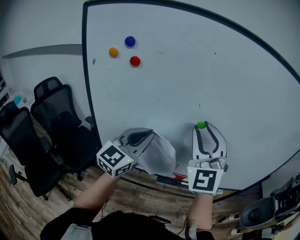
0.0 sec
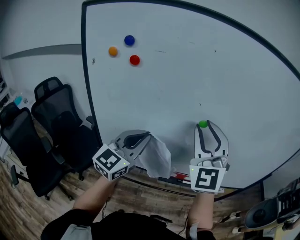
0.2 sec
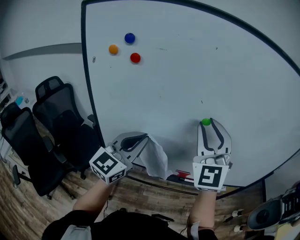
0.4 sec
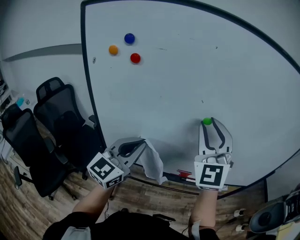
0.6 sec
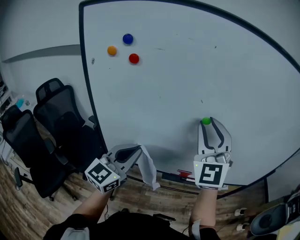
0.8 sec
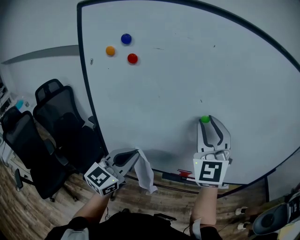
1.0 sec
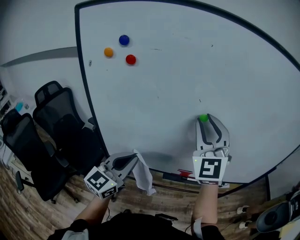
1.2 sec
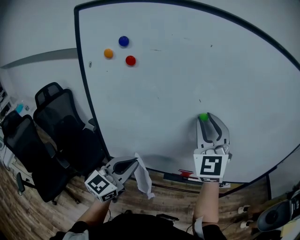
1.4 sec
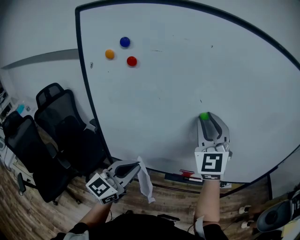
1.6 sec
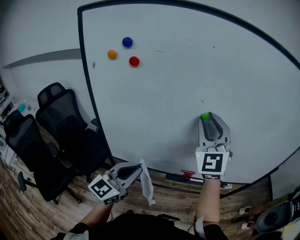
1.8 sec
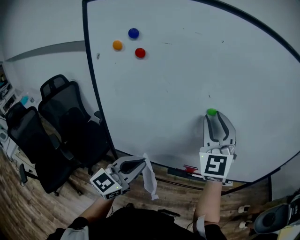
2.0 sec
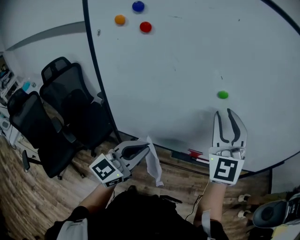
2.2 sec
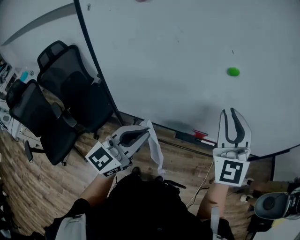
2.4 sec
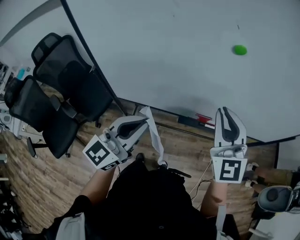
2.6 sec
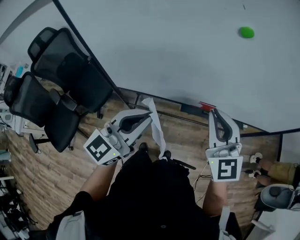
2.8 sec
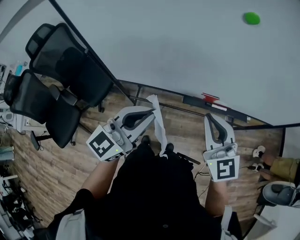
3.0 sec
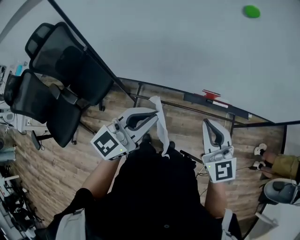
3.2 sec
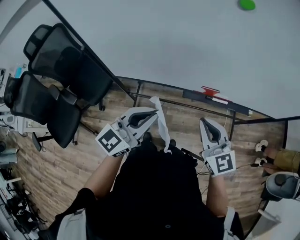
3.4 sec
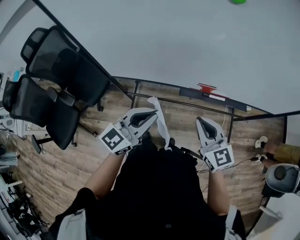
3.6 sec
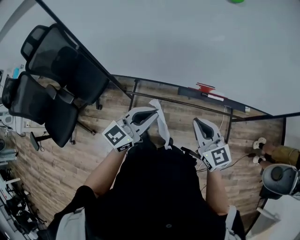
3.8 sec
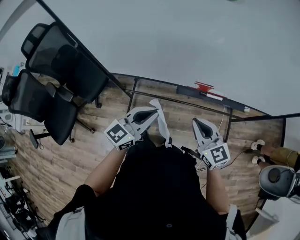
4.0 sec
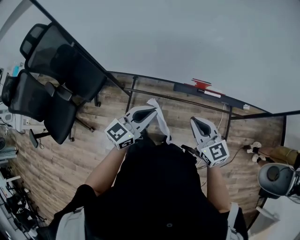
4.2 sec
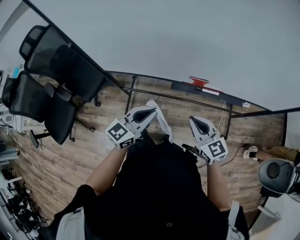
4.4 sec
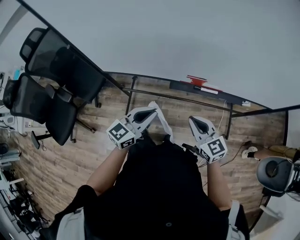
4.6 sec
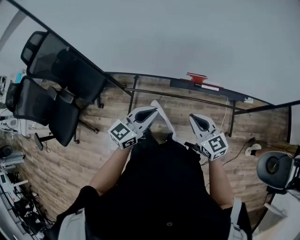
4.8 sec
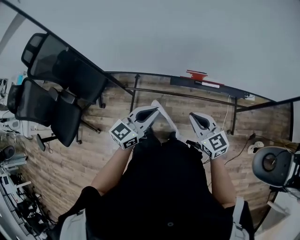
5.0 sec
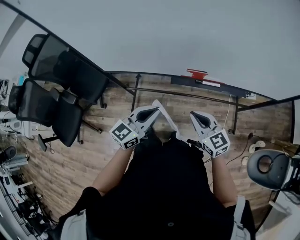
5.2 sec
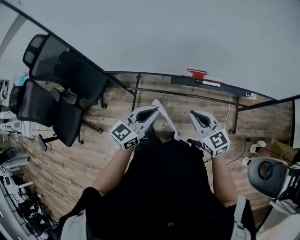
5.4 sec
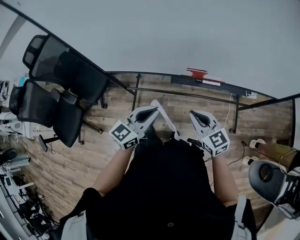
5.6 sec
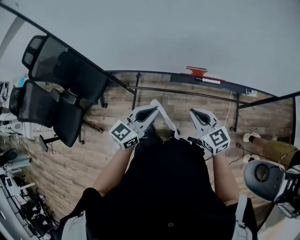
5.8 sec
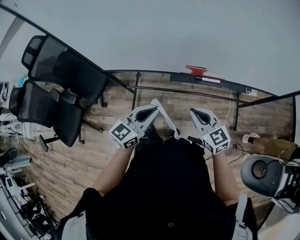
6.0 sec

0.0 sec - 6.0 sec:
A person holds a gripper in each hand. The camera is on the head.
0.0 sec - 1.6 sec: The right gripper shifts by about 5 cm; the left gripper goes about 15 cm backward and downward.
1.6 sec - 3.0 sec: The right gripper shifts roughly 30 cm downward and backward, turns by roughly 40 degrees, and closes. The left gripper heads downward, covering about 5 cm.
3.0 sec - 4.4 sec: The right gripper travels downward by some 20 cm, and changes its angle by approximately 20 degrees, while the left gripper heads downward and to the right, covering about 20 cm.
4.4 sec - 6.0 sec: The grippers stay close to where they were, moving slightly.

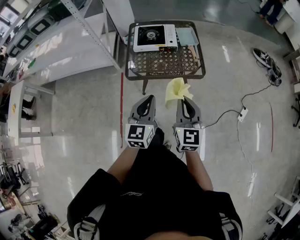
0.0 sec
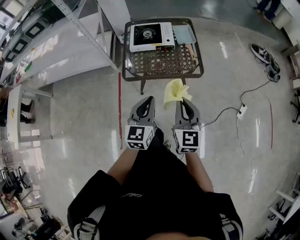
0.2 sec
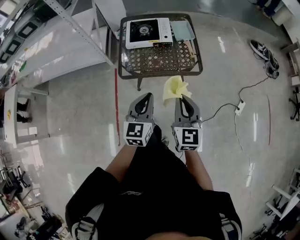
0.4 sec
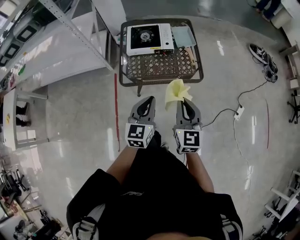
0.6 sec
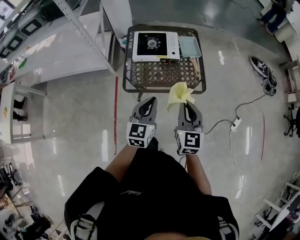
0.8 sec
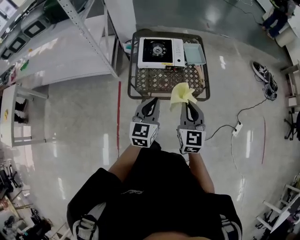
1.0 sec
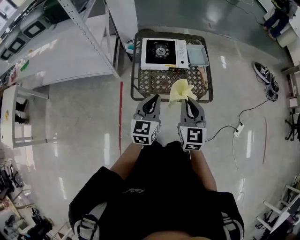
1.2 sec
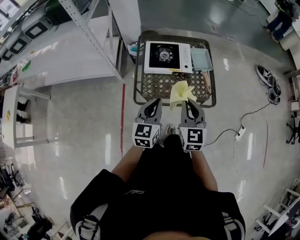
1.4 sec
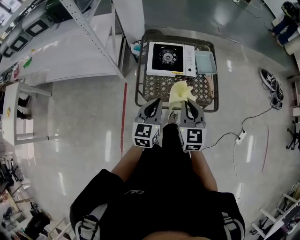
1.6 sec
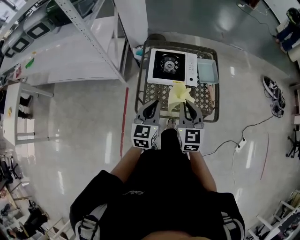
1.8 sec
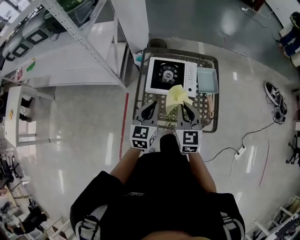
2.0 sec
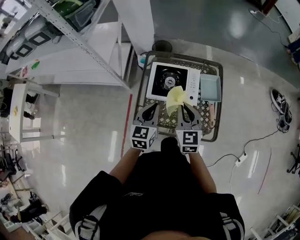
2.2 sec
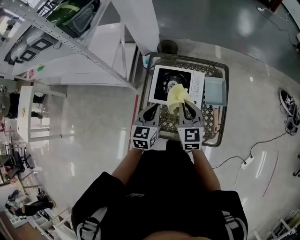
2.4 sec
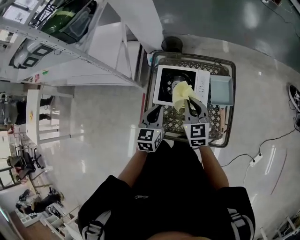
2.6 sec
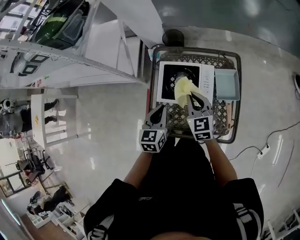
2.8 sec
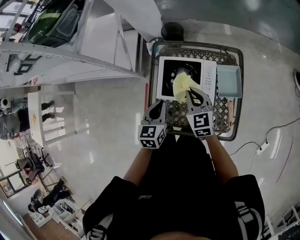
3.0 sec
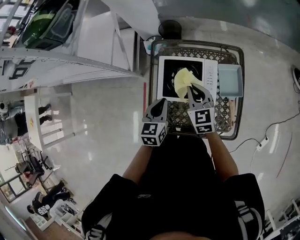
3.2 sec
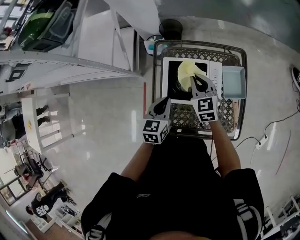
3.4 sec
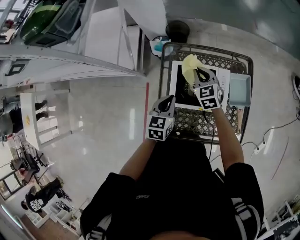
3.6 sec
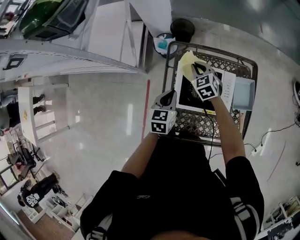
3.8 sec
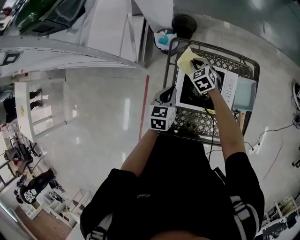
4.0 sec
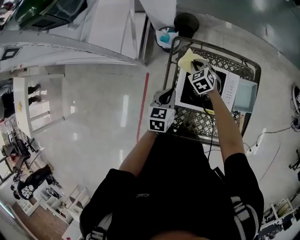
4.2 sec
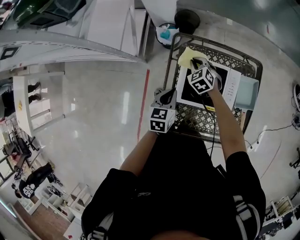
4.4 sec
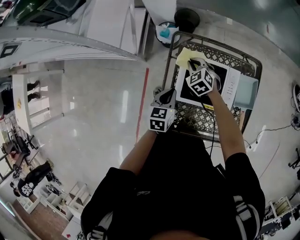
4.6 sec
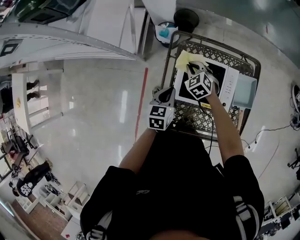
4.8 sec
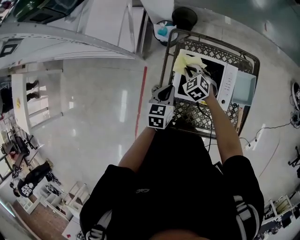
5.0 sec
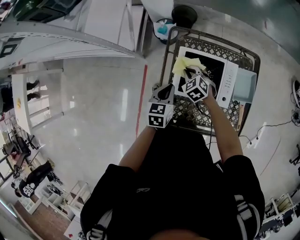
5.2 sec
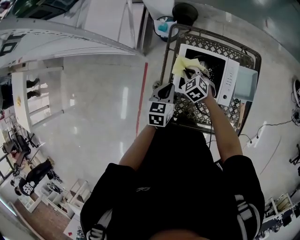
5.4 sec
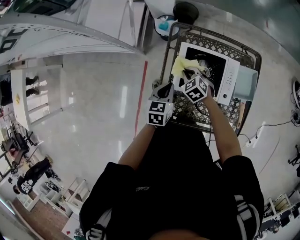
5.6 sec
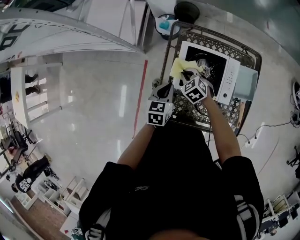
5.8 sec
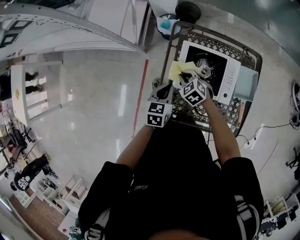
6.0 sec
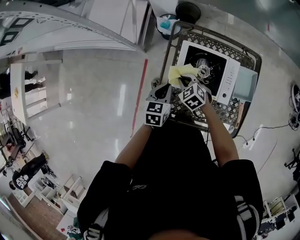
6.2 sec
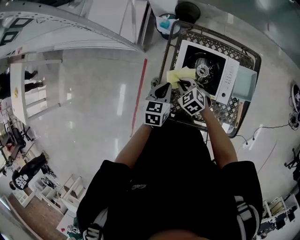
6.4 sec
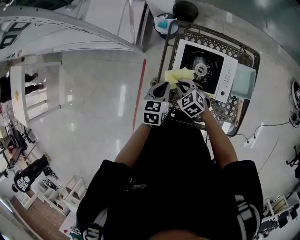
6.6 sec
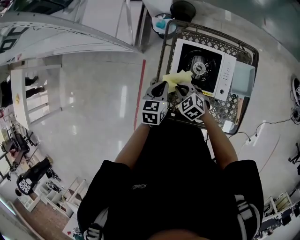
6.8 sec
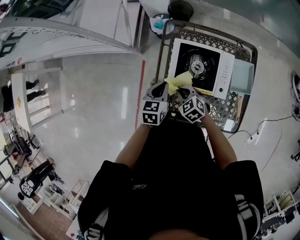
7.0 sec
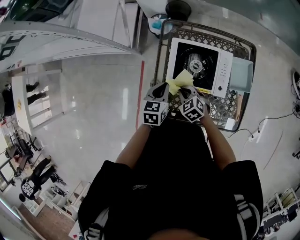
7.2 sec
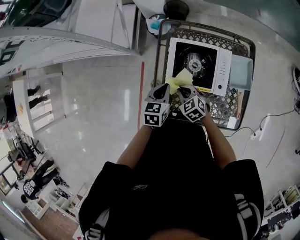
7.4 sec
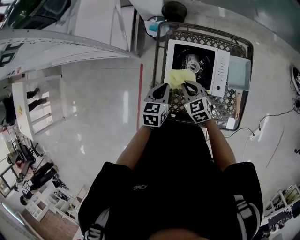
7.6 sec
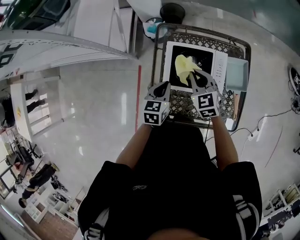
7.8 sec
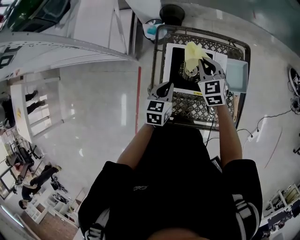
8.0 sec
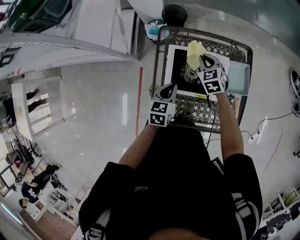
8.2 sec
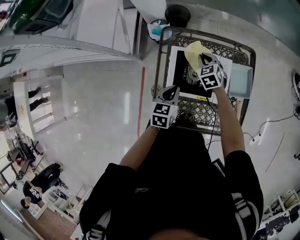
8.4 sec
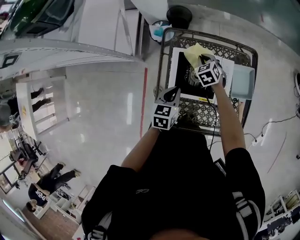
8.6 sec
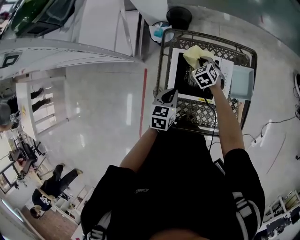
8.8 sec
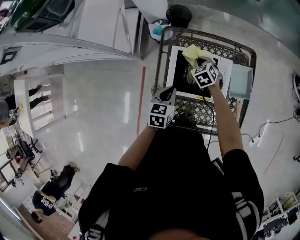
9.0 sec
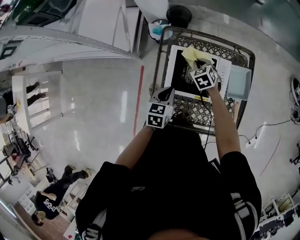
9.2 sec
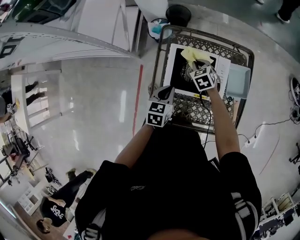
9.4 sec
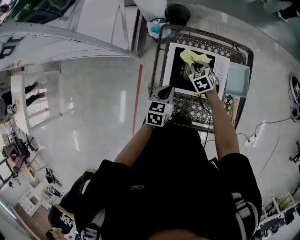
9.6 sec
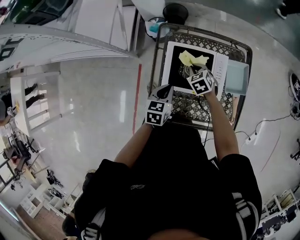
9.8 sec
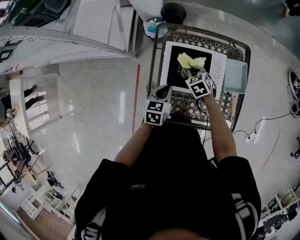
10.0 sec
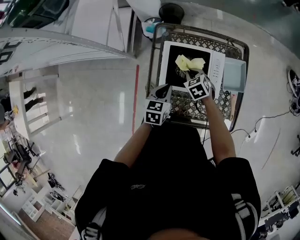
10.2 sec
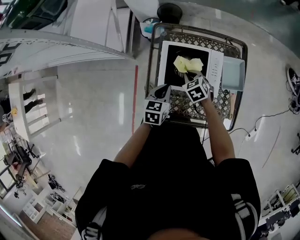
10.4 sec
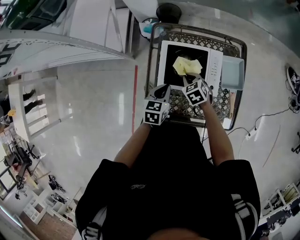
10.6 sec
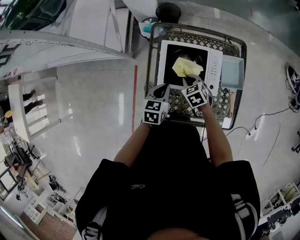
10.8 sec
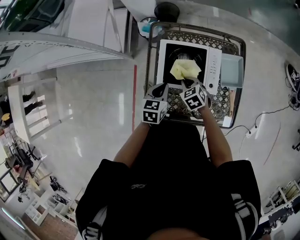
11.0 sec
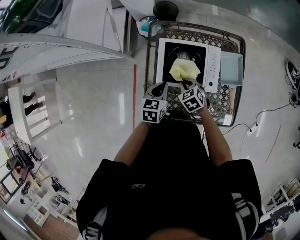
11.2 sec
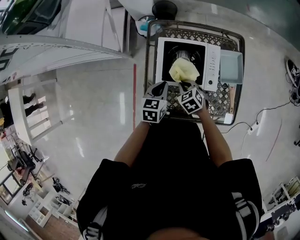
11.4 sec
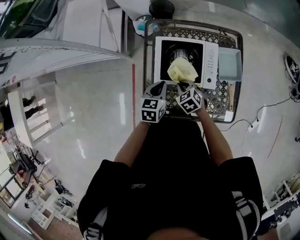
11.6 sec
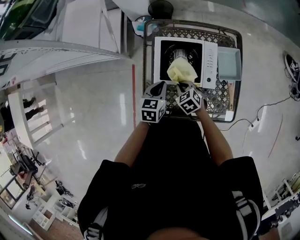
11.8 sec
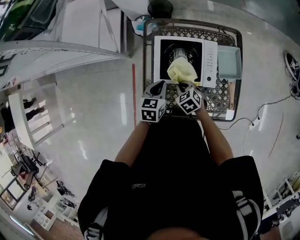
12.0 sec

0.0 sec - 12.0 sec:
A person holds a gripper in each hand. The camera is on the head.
0.0 sec - 1.6 sec: Both grippers travel together forward and to the left, approximately 30 cm.
1.6 sec - 3.0 sec: Both grippers travel together forward, approximately 30 cm. The right gripper changes its angle by about 20 degrees.
3.0 sec - 4.4 sec: The left gripper moves downward, to the left and forward, some 15 cm; the right gripper goes roughly 30 cm forward, downward and to the left, and swivels some 40 degrees.
4.4 sec - 6.0 sec: The left gripper goes about 5 cm backward, while the right gripper is displaced backward by roughly 15 cm.
6.0 sec - 7.6 sec: The right gripper heads upward, to the right and backward, covering approximately 10 cm, and changes its angle by approximately 20 degrees.
7.6 sec - 9.0 sec: The right gripper travels forward by some 15 cm.
9.0 sec - 10.4 sec: The right gripper shifts some 10 cm backward.
10.4 sec - 12.0 sec: The right gripper moves backward, about 10 cm.

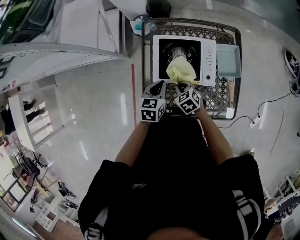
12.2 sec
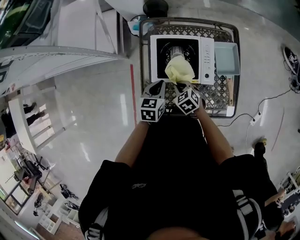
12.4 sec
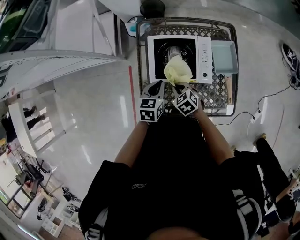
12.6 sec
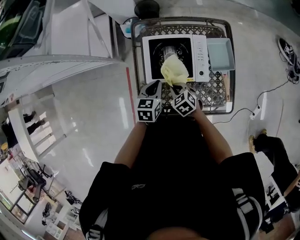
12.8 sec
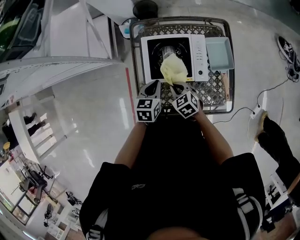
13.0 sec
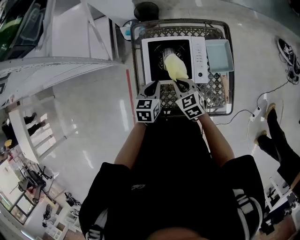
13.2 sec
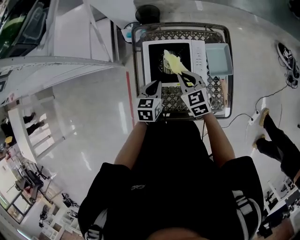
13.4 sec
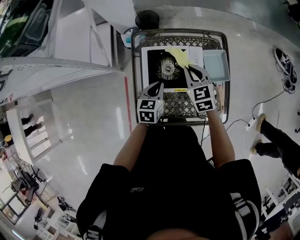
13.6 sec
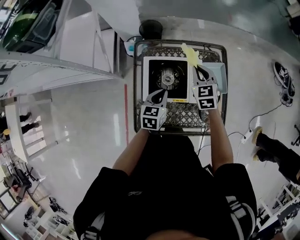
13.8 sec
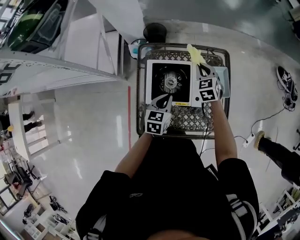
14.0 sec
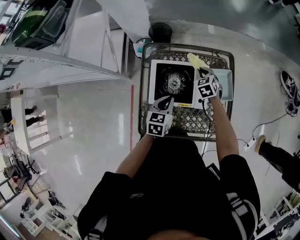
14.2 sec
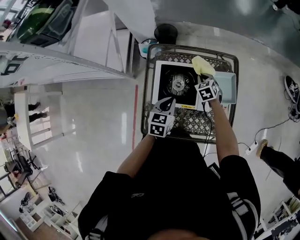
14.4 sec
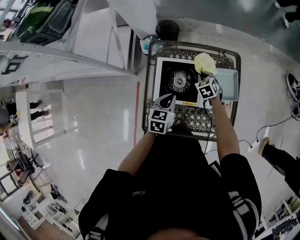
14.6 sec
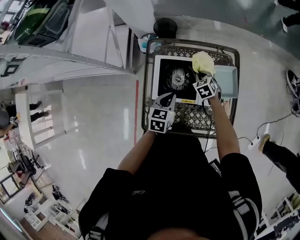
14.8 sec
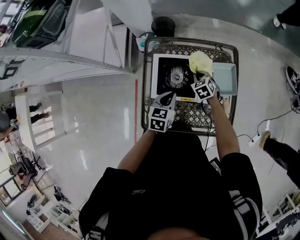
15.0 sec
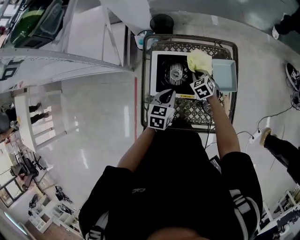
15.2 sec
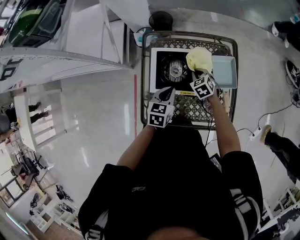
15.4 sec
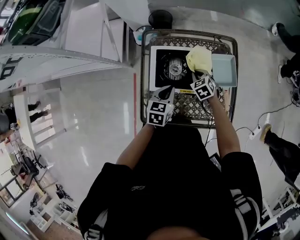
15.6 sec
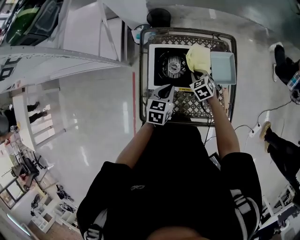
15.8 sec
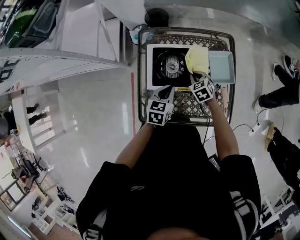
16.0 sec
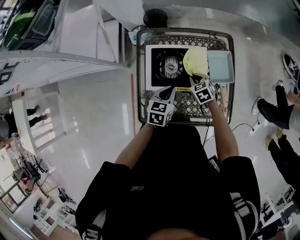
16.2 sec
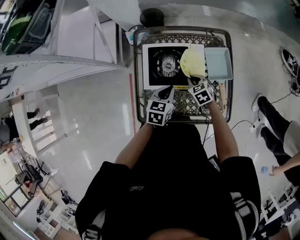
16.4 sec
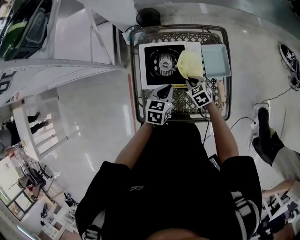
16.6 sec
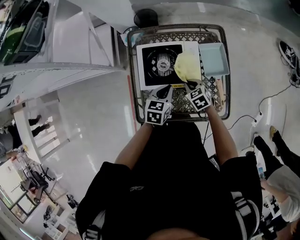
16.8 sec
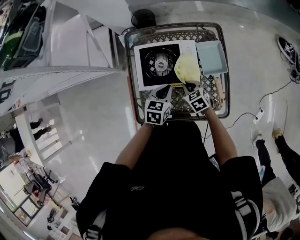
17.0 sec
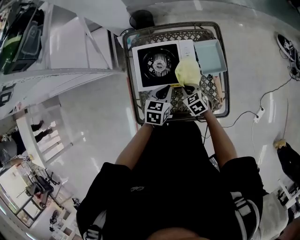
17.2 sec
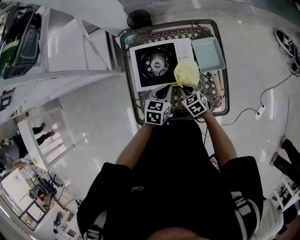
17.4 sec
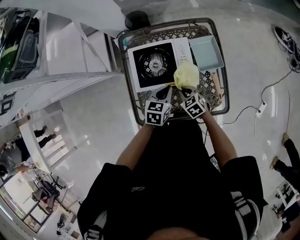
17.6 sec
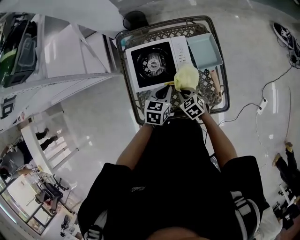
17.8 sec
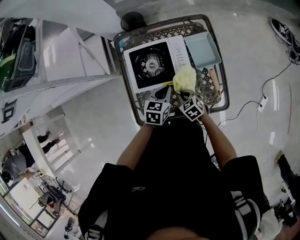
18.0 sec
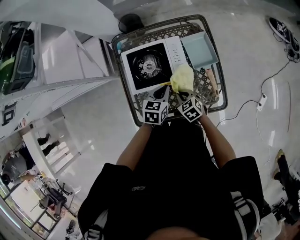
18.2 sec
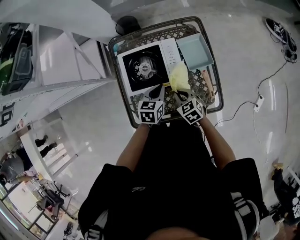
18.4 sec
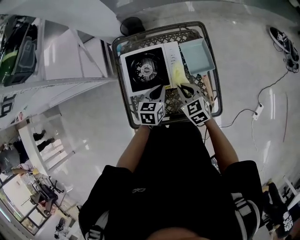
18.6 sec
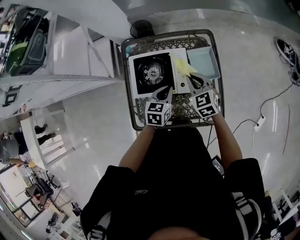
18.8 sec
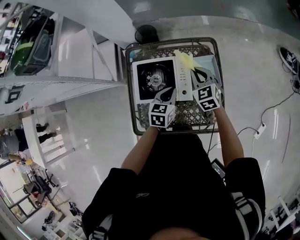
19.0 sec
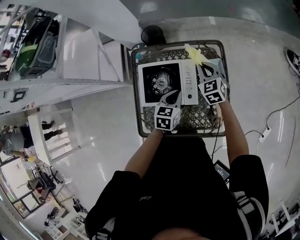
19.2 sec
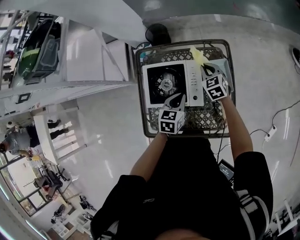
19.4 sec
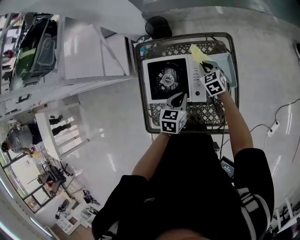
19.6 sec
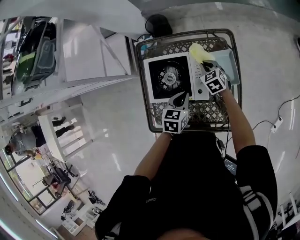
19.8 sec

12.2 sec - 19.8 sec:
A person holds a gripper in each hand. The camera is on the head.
12.2 sec - 13.8 sec: The left gripper goes approximately 5 cm to the right; the right gripper heads forward, upward and to the right, covering roughly 25 cm, and swivels some 30 degrees.
13.8 sec - 15.2 sec: The right gripper travels downward by roughly 15 cm, and swivels about 20 degrees.
15.2 sec - 16.8 sec: The right gripper heads backward, covering roughly 10 cm, while the left gripper changes place by roughly 5 cm.
16.8 sec - 18.2 sec: The right gripper heads backward, covering roughly 10 cm.
18.2 sec - 19.8 sec: The left gripper moves forward, roughly 5 cm; the right gripper shifts roughly 25 cm forward.
